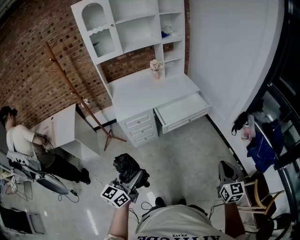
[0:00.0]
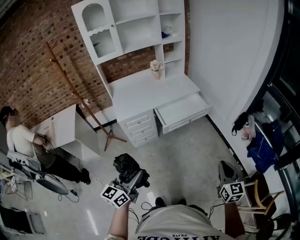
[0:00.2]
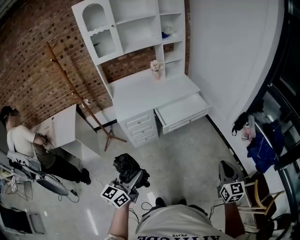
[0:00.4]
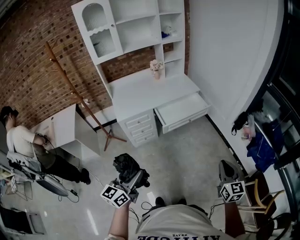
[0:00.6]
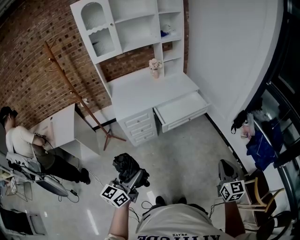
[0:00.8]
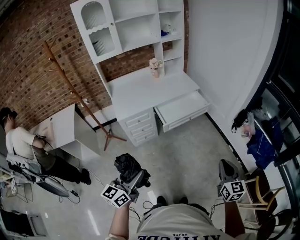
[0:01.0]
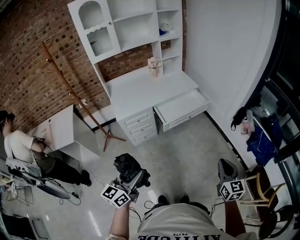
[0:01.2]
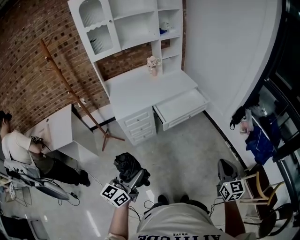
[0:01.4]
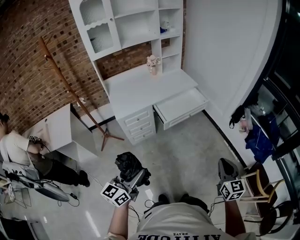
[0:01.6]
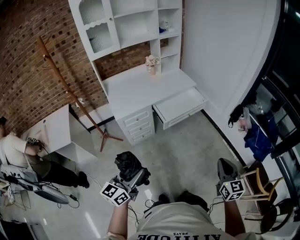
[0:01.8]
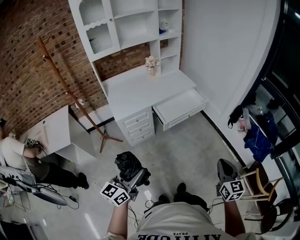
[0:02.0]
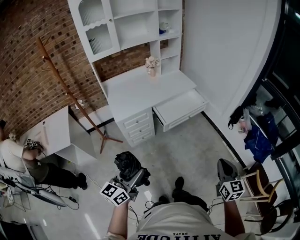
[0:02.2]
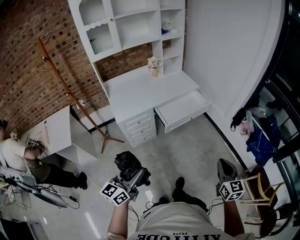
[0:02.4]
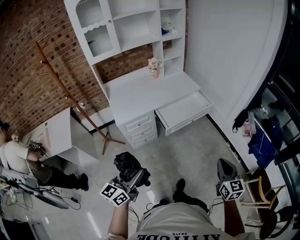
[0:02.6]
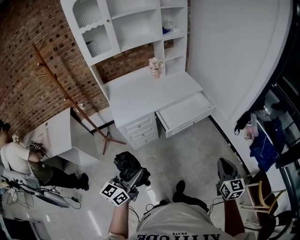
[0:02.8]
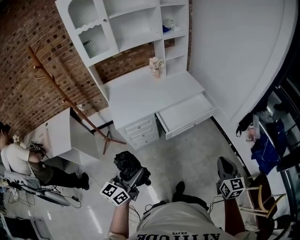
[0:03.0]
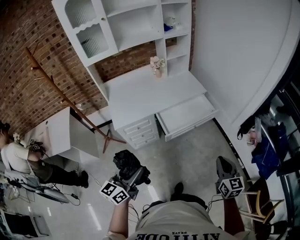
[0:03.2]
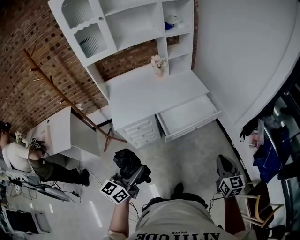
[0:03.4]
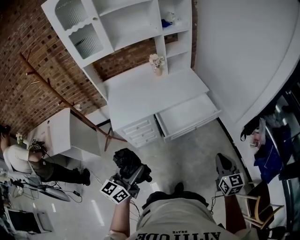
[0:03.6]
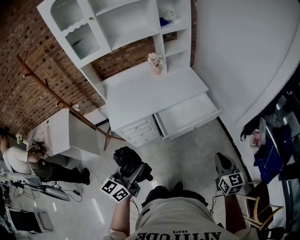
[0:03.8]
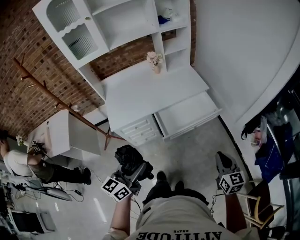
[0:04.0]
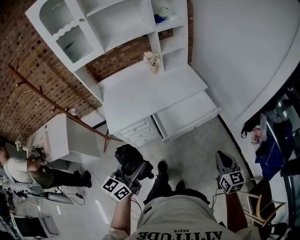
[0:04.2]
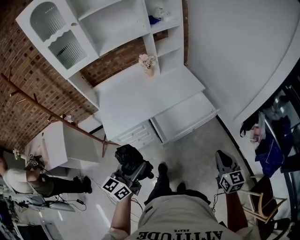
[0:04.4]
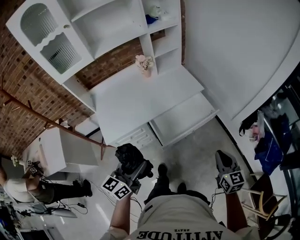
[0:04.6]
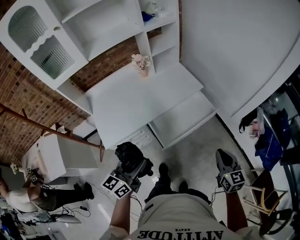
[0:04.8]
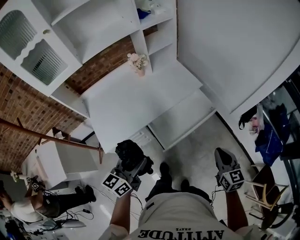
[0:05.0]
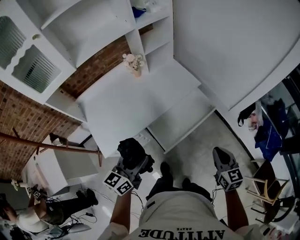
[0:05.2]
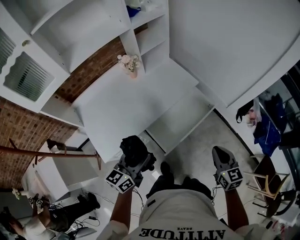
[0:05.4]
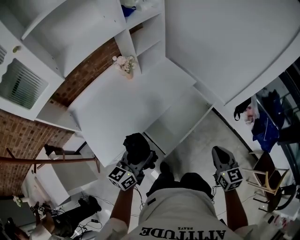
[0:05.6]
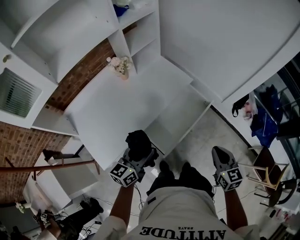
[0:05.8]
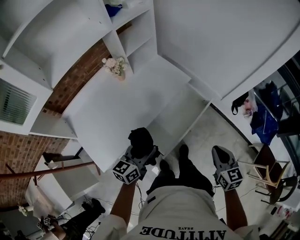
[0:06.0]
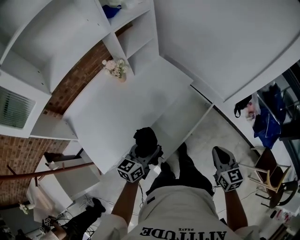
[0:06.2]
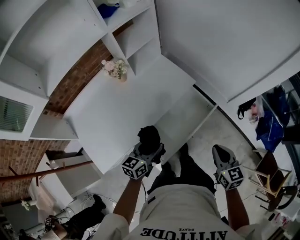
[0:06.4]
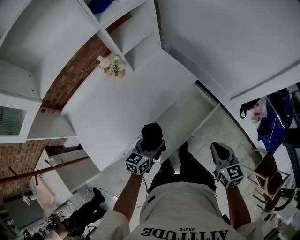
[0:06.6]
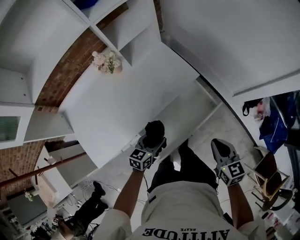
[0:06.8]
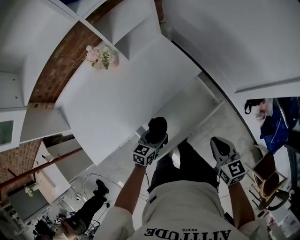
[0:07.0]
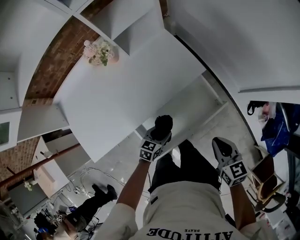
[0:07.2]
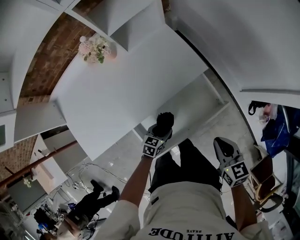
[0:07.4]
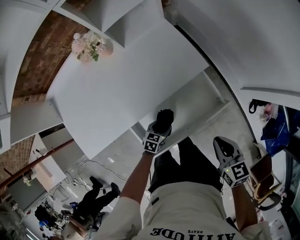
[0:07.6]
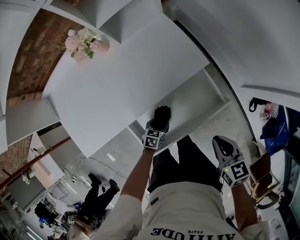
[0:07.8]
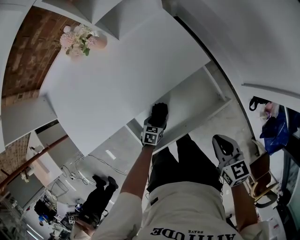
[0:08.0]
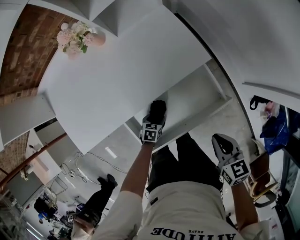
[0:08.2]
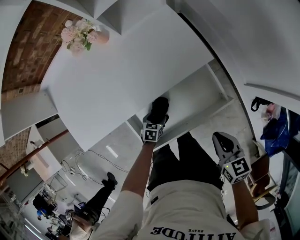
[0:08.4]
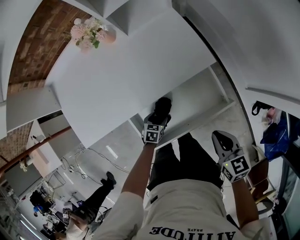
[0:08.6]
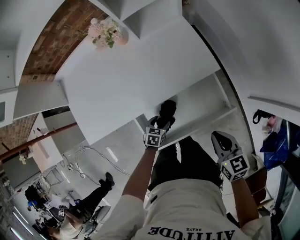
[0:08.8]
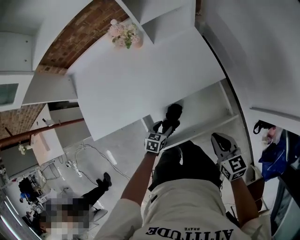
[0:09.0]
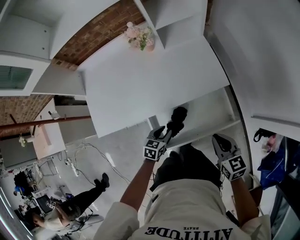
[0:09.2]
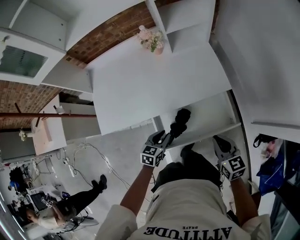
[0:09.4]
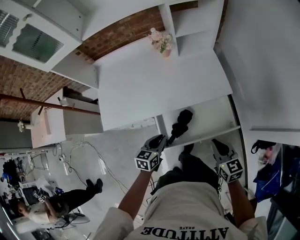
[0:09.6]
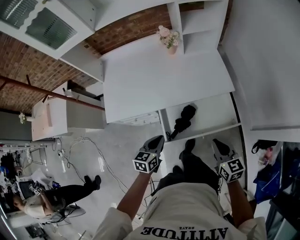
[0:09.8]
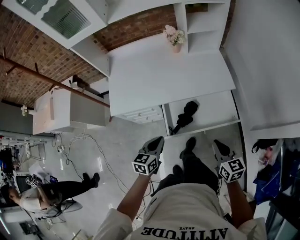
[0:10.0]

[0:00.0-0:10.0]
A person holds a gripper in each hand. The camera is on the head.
0:00.0 to 0:01.4: The right gripper moves about 5 cm.
0:01.4 to 0:02.8: Both grippers move forward, roughly 10 cm.
0:02.8 to 0:04.2: Both grippers travel together forward, roughly 20 cm.
0:04.2 to 0:05.8: The left gripper heads forward, covering roughly 30 cm, and swivels some 30 degrees, while the right gripper goes roughly 15 cm forward and to the left.
0:05.8 to 0:07.2: The right gripper heads forward and downward, covering about 20 cm, and rotates roughly 20 degrees; the left gripper heads downward, forward and to the right, covering some 35 cm, and points its fingers roughly 30 degrees further downward.
0:07.2 to 0:08.6: The left gripper is displaced downward by about 15 cm, and rotates some 30 degrees. The right gripper moves downward, about 5 cm.
0:08.6 to 0:10.0: The left gripper is displaced upward and backward by roughly 35 cm, angles its fingers upward, by approximately 30 degrees, and closes up; the right gripper heads backward, upward and to the left, covering some 20 cm.

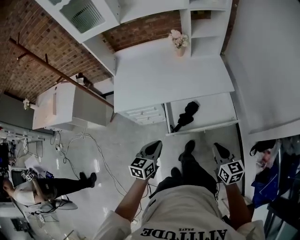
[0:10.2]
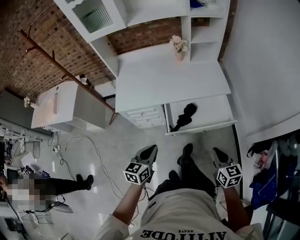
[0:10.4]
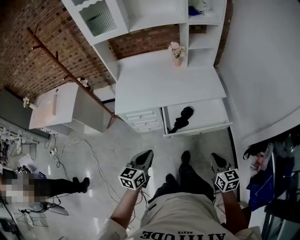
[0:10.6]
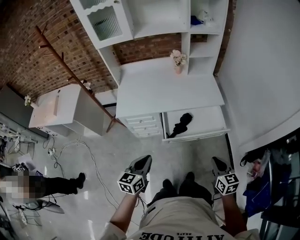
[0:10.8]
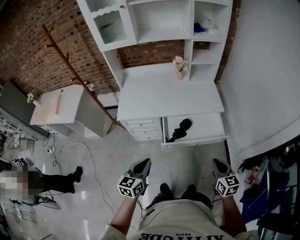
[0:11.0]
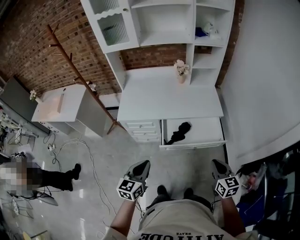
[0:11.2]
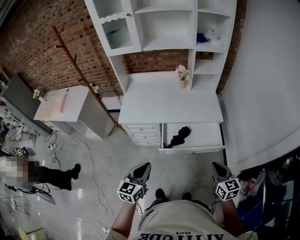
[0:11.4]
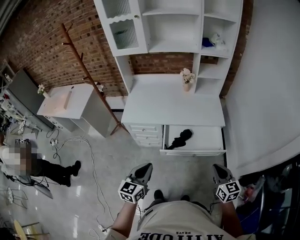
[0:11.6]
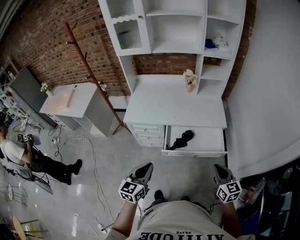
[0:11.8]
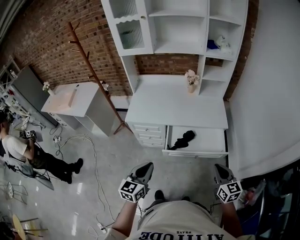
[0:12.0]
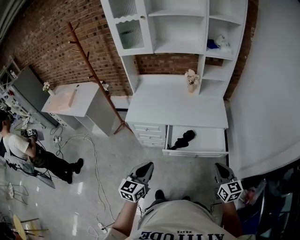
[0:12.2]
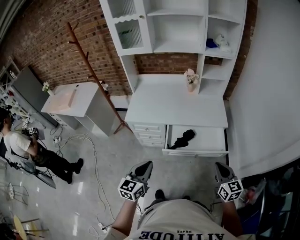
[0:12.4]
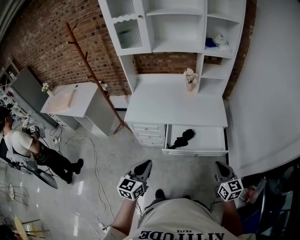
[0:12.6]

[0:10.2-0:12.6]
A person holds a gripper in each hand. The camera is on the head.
0:10.2 to 0:11.4: The left gripper goes some 15 cm backward and upward; the right gripper moves upward, backward and to the right, about 10 cm.
0:11.4 to 0:12.6: The grippers make only small movements.

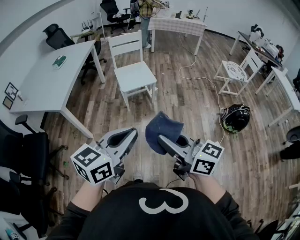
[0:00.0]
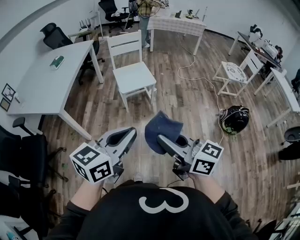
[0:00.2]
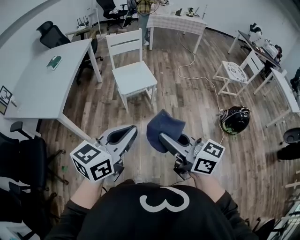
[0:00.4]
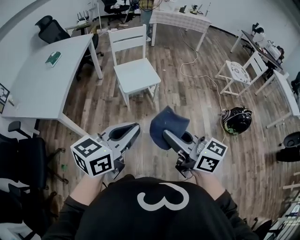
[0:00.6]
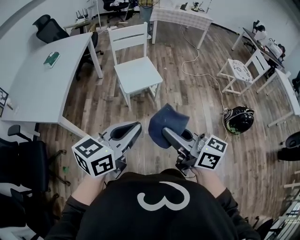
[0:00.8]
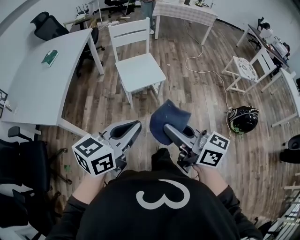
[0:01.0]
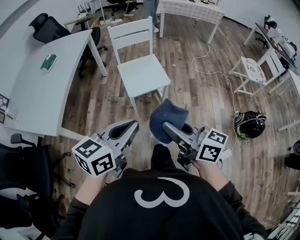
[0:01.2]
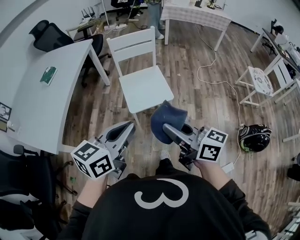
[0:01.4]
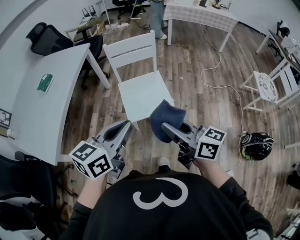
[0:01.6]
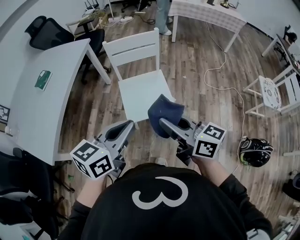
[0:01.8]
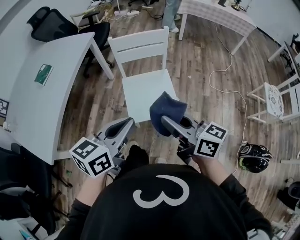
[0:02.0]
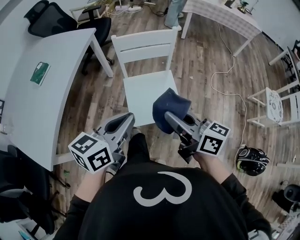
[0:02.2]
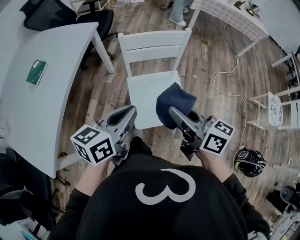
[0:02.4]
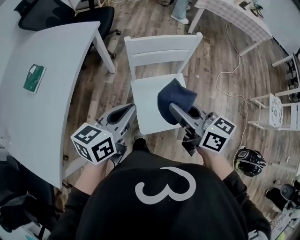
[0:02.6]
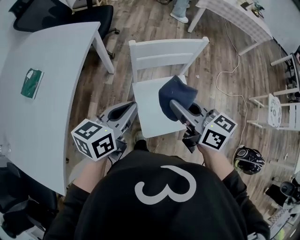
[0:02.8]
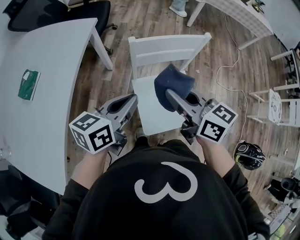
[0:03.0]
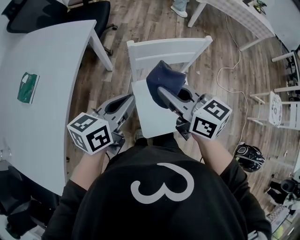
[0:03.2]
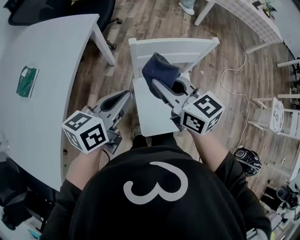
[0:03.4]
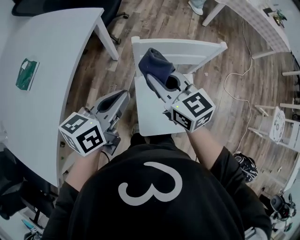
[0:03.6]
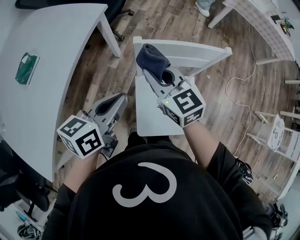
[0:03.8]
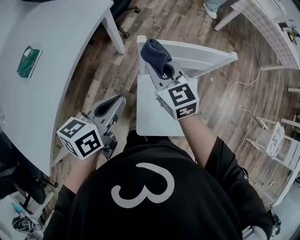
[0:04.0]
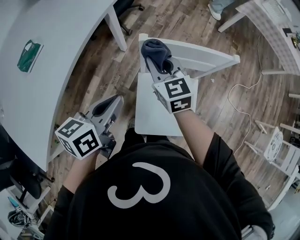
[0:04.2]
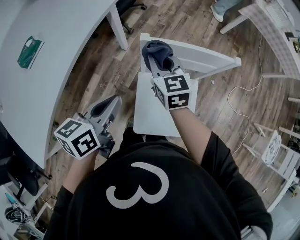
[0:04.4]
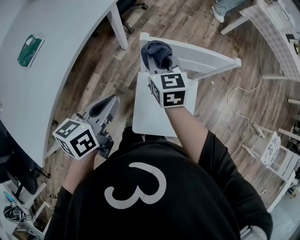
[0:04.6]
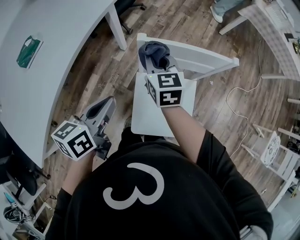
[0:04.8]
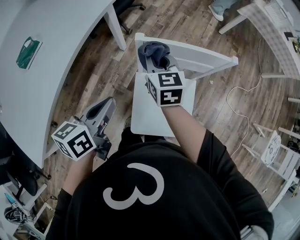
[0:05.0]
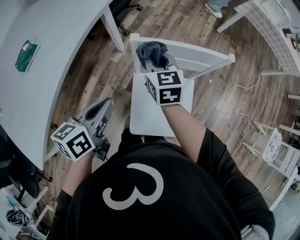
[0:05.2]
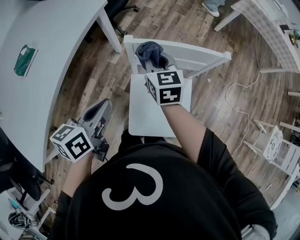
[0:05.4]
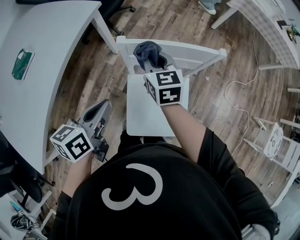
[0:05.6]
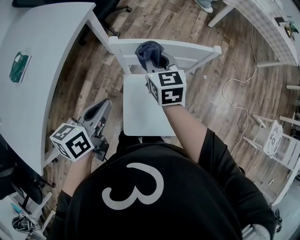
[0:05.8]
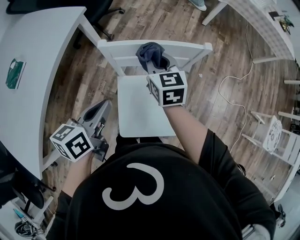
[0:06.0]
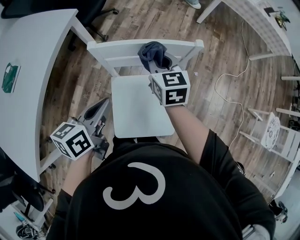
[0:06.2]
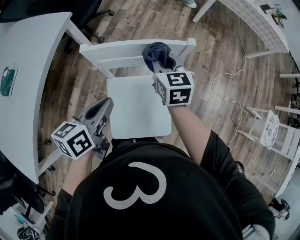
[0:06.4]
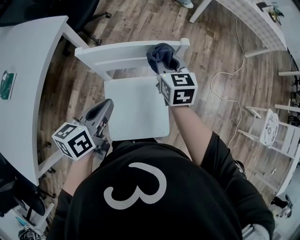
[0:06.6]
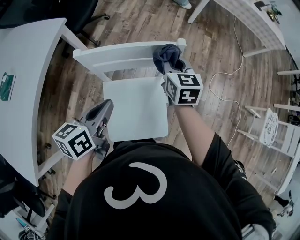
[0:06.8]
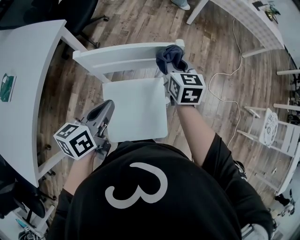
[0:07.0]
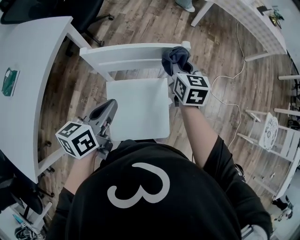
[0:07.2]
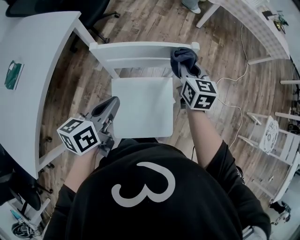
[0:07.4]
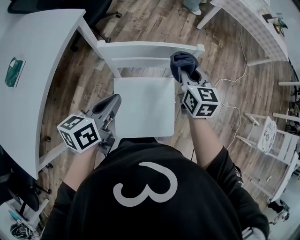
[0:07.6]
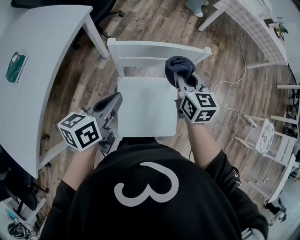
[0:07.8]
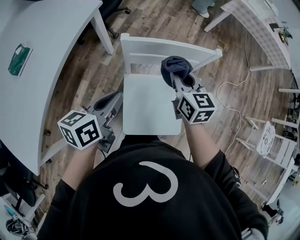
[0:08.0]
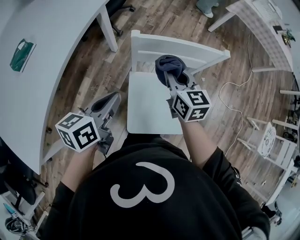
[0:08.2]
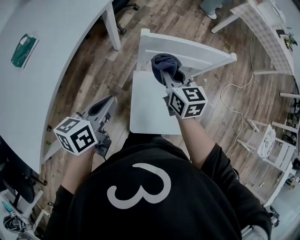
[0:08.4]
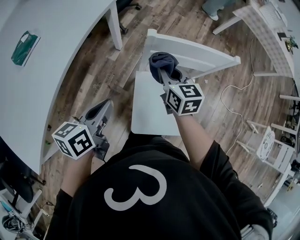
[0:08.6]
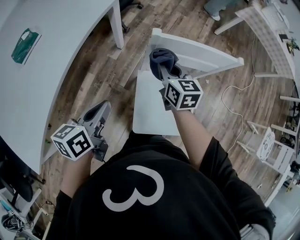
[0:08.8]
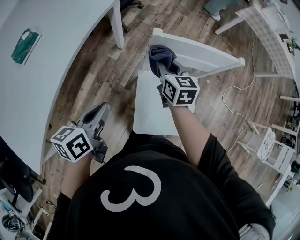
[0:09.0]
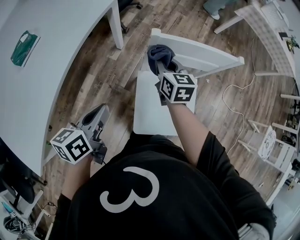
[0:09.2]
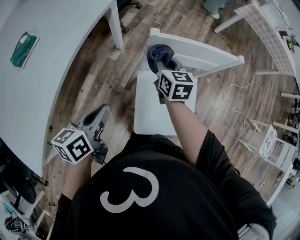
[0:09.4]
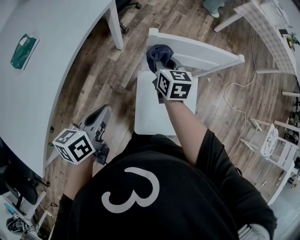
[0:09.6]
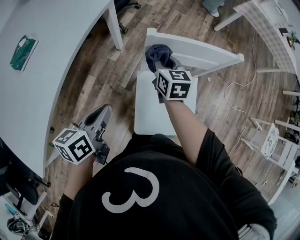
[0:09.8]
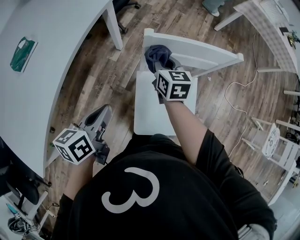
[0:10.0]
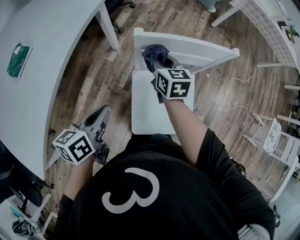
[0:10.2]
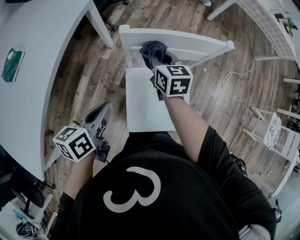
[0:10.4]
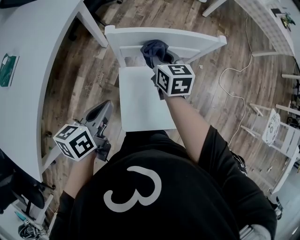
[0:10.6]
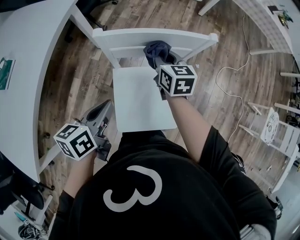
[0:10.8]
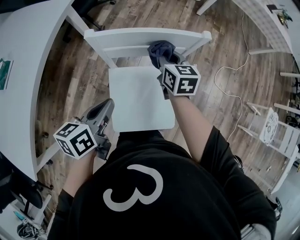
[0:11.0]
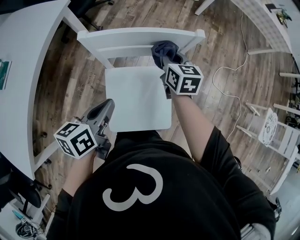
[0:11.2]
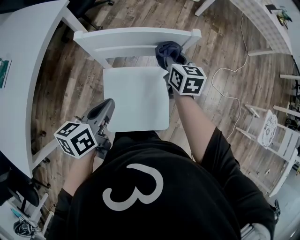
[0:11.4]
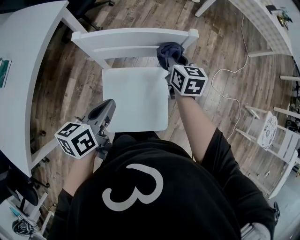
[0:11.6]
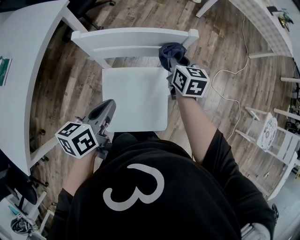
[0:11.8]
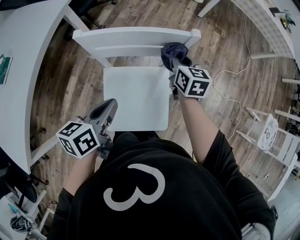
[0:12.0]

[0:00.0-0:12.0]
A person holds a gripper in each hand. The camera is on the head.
0:00.0 to 0:01.6: The pair of grippers is taken forward, roughly 50 cm.
0:01.6 to 0:03.0: Both grippers move forward, approximately 40 cm.
0:03.0 to 0:04.4: The right gripper goes some 20 cm forward and downward, and rotates approximately 30 degrees. Meanwhile the left gripper moves about 5 cm, and changes its angle by roughly 30 degrees.
0:04.4 to 0:06.0: The left gripper travels to the right by some 5 cm. The right gripper shifts approximately 10 cm to the right.
0:06.0 to 0:07.6: The right gripper goes roughly 15 cm to the right.
0:07.6 to 0:09.0: The left gripper shifts roughly 20 cm to the left and backward. The right gripper shifts about 25 cm to the left.
0:09.0 to 0:10.4: The left gripper travels to the right by about 5 cm. The right gripper shifts by approximately 5 cm.
0:10.4 to 0:12.0: The grippers both shift to the right by about 20 cm.
